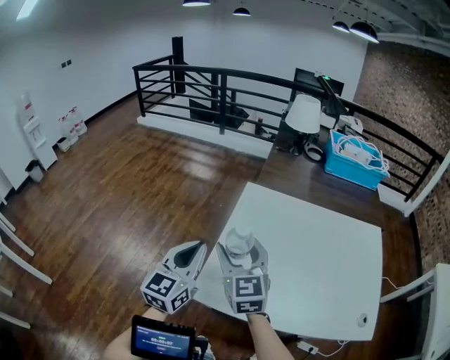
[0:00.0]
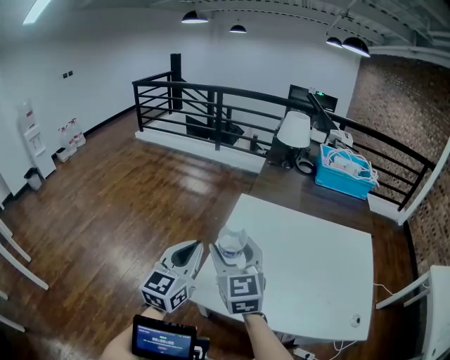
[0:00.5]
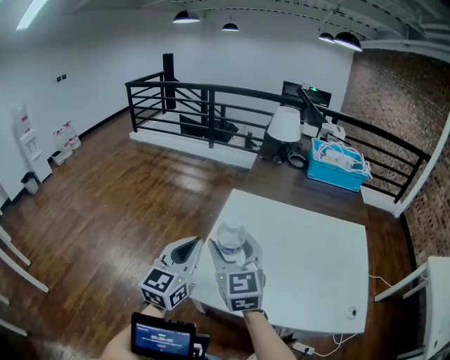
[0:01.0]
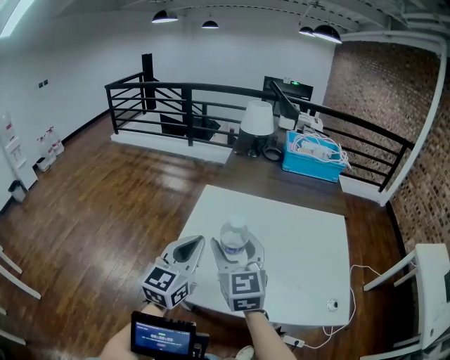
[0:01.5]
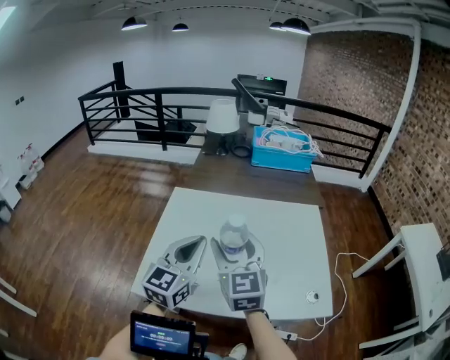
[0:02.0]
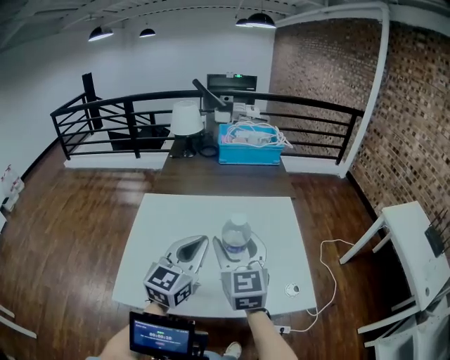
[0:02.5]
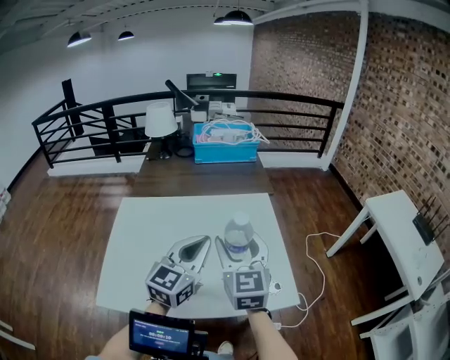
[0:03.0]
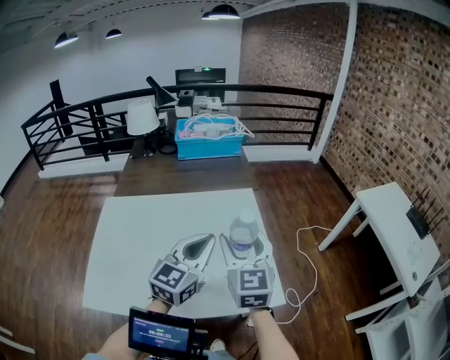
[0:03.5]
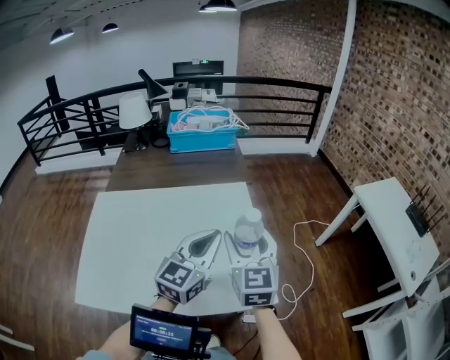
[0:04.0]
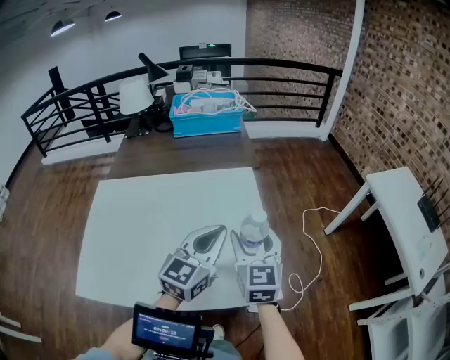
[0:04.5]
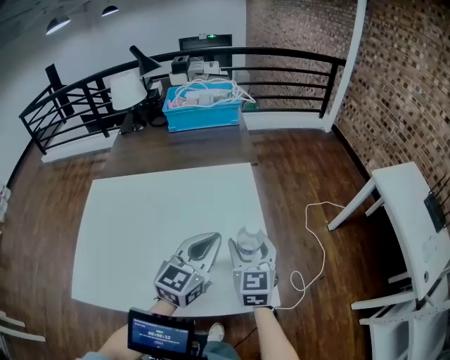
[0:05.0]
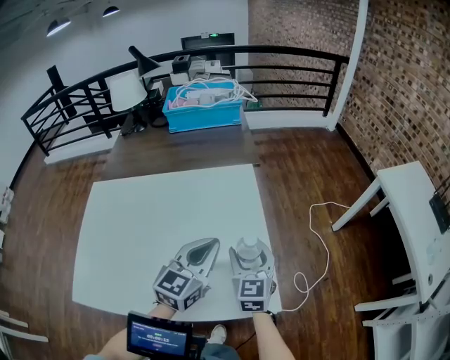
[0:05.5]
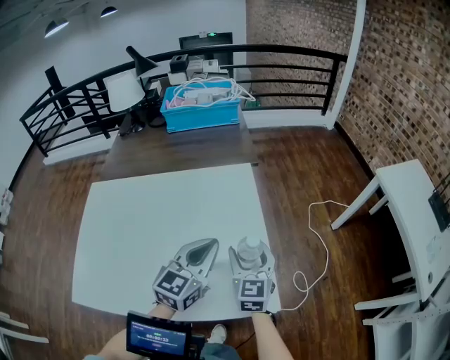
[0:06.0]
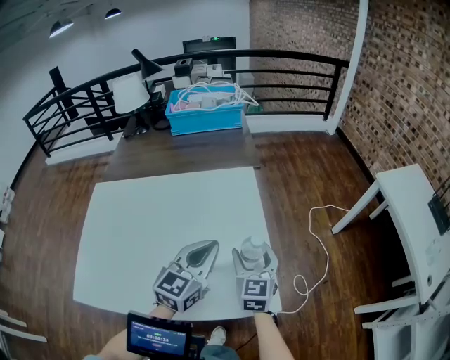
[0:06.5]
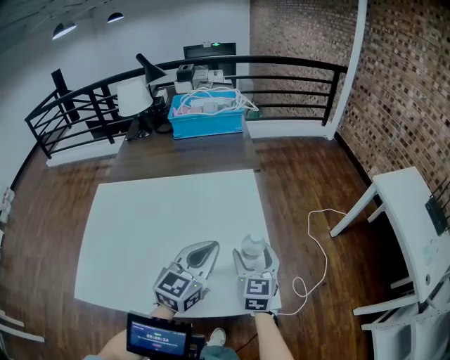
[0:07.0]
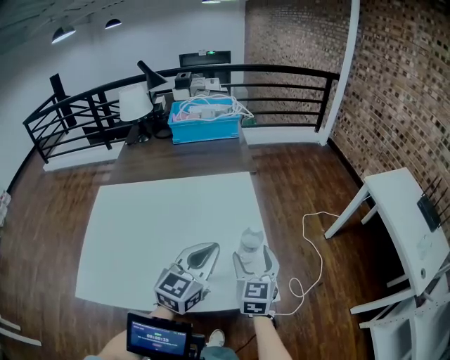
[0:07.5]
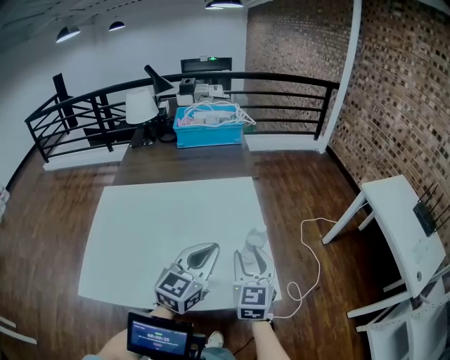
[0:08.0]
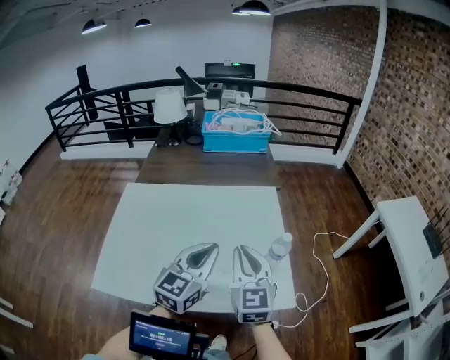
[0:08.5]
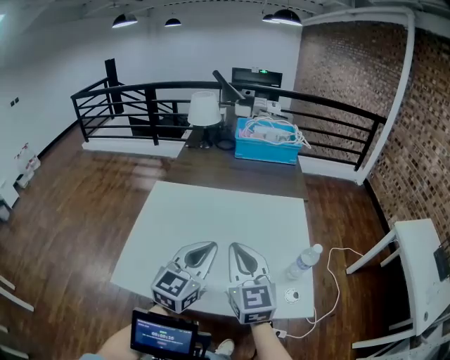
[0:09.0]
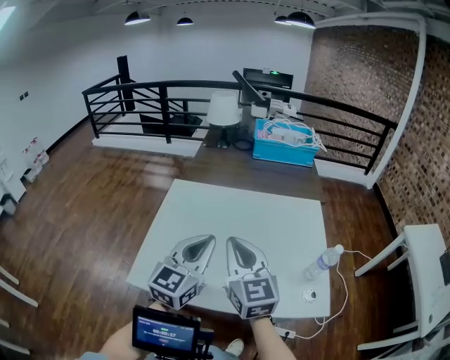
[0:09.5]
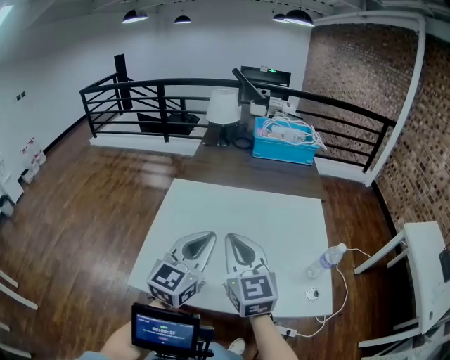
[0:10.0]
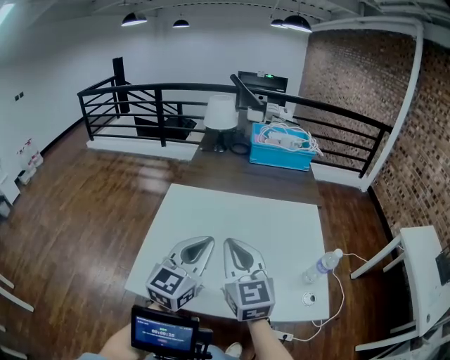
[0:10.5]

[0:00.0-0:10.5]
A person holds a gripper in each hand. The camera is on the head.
0:00.0 to 0:02.0: The two grippers go approximately 25 cm to the right.
0:02.0 to 0:04.0: Both grippers travel together to the right, about 30 cm. The left gripper turns by approximately 20 degrees. Meanwhile the right gripper turns by roughly 20 degrees.
0:04.0 to 0:06.5: The left gripper heads downward, covering about 10 cm. Meanwhile the right gripper travels downward by approximately 20 cm.
0:06.5 to 0:08.5: The left gripper goes roughly 15 cm backward, to the left and upward; the right gripper shifts some 20 cm upward, to the left and backward, and closes its fingers.
0:08.5 to 0:10.5: Both grippers travel together to the left, some 20 cm.

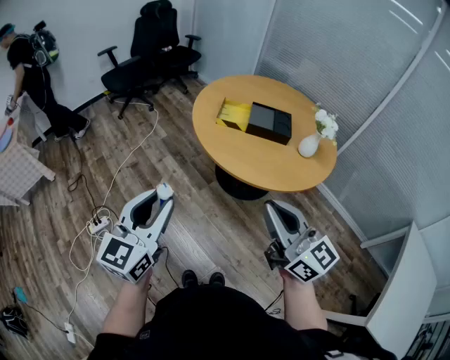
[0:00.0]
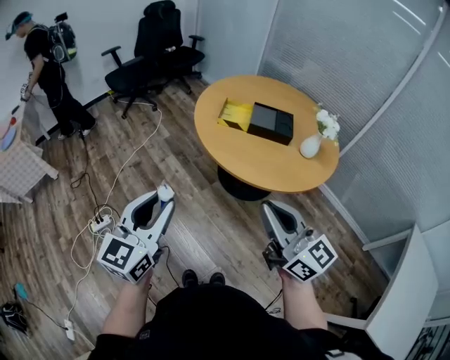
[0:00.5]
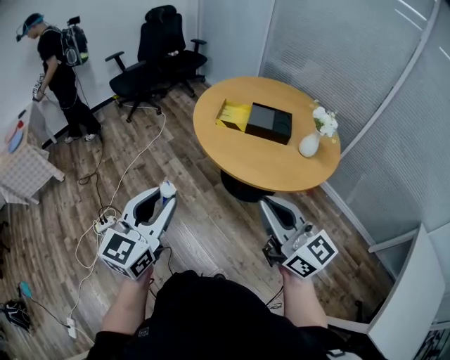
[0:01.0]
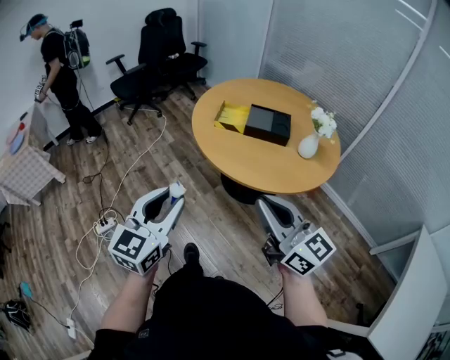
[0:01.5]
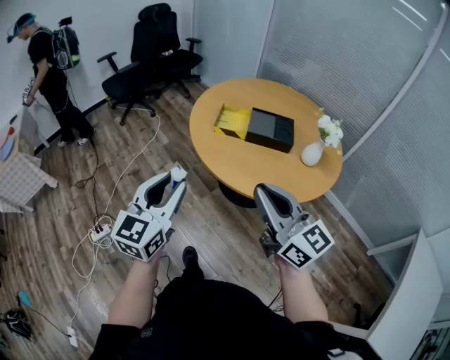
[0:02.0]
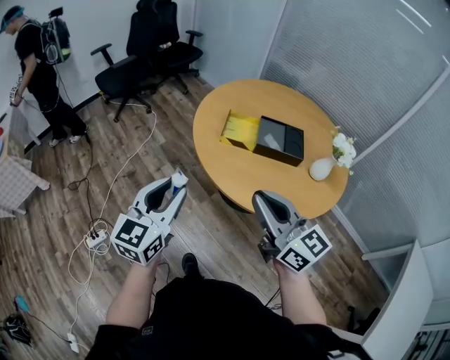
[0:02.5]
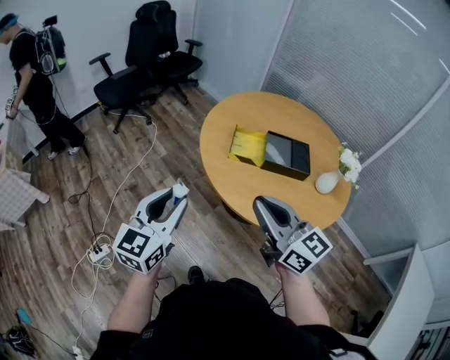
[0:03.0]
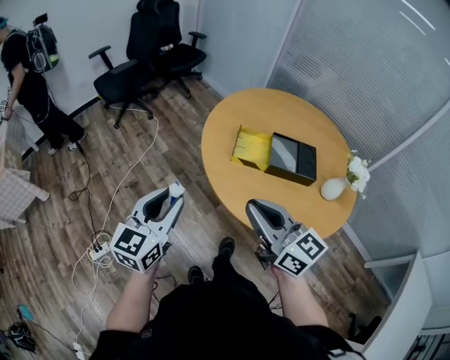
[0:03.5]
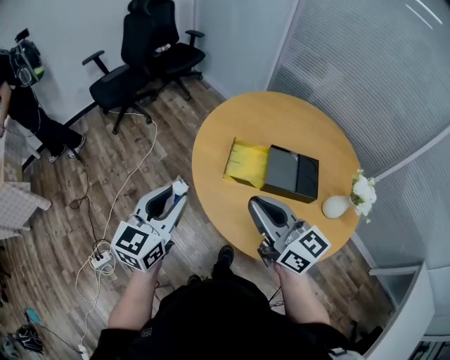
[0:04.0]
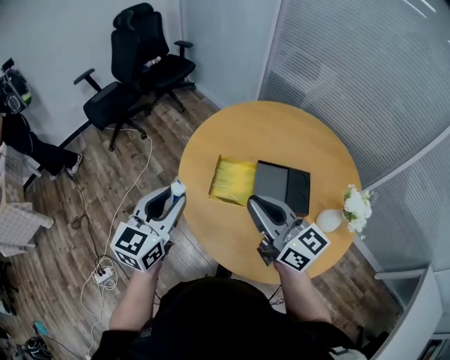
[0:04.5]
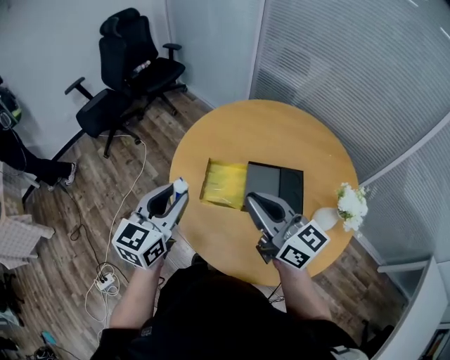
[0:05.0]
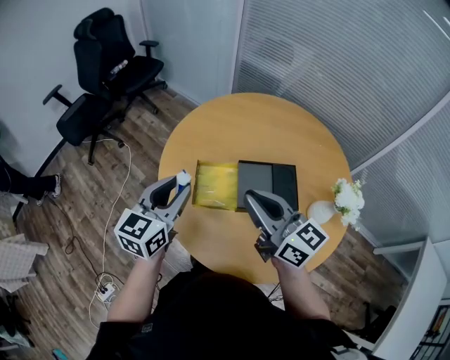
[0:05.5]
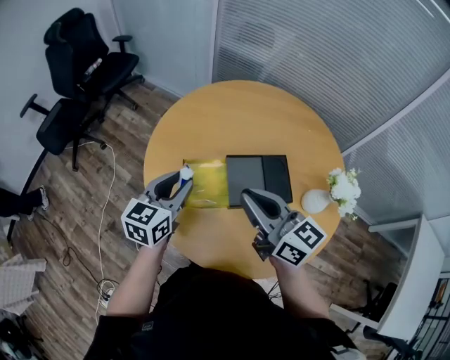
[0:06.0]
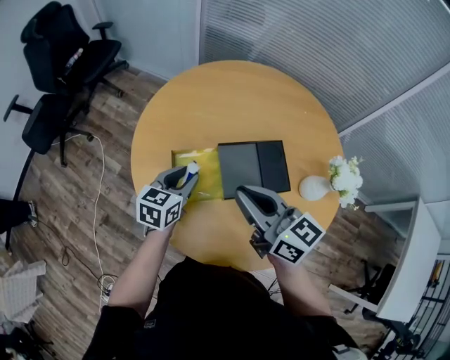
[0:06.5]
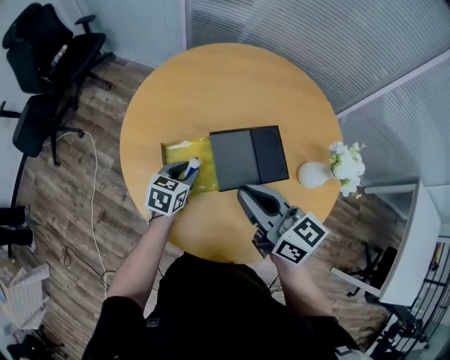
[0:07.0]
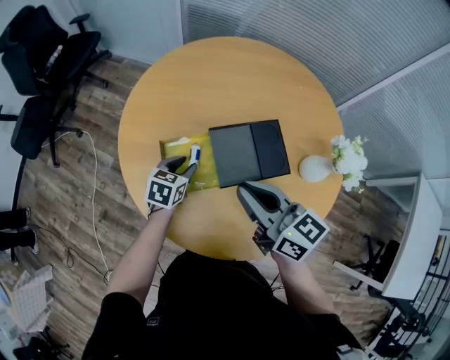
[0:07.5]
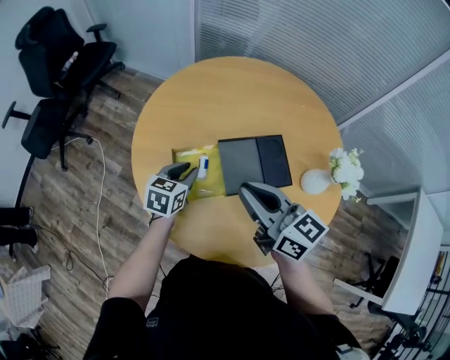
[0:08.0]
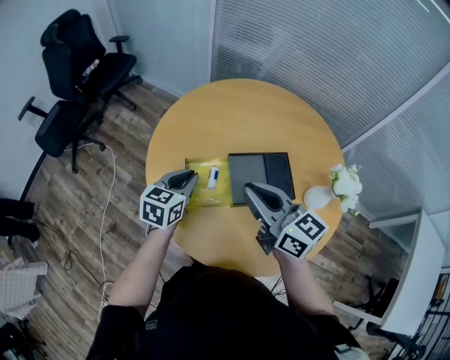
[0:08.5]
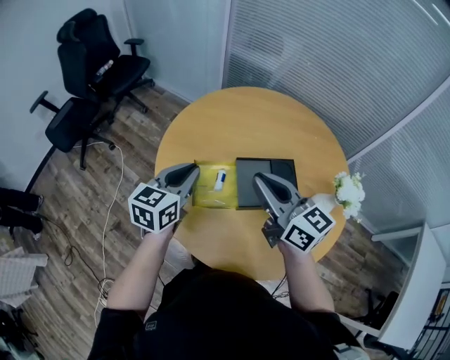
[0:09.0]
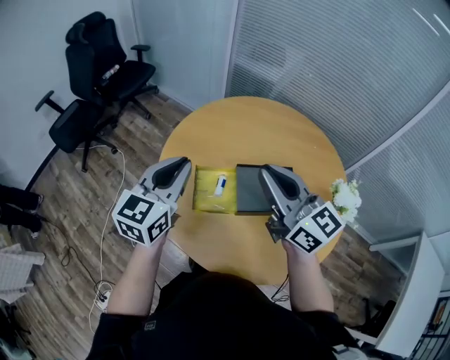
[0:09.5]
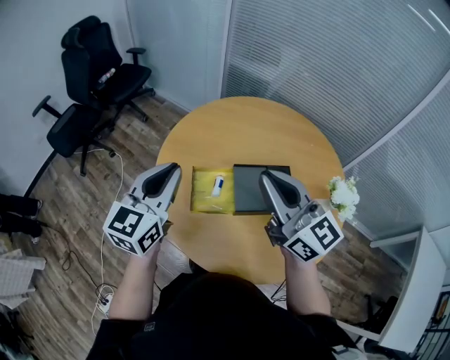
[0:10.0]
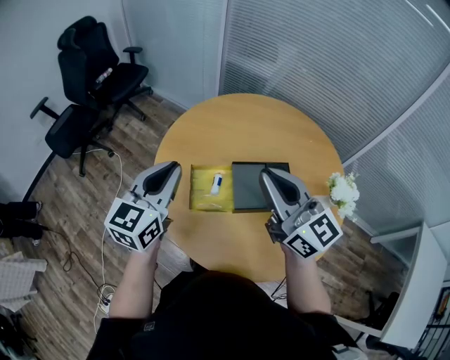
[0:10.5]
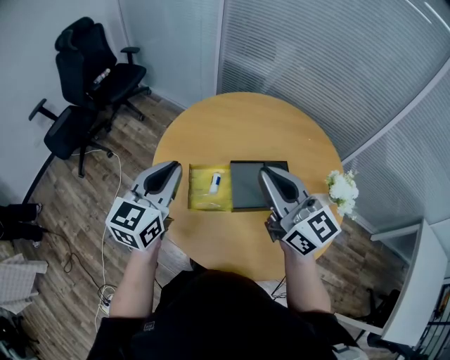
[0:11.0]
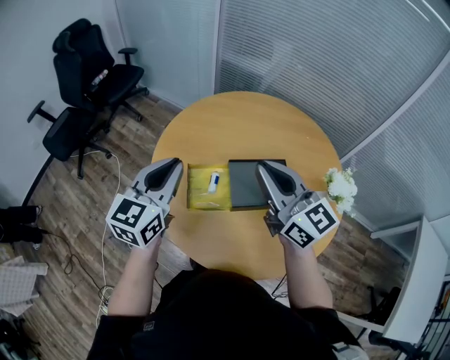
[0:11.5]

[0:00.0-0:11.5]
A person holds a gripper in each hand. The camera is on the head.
0:00.0 to 0:02.0: The right gripper heads forward, covering approximately 10 cm; the left gripper heads forward and to the right, covering about 15 cm.
0:02.0 to 0:04.0: The grippers both shift forward by roughly 30 cm.
0:04.0 to 0:06.0: The grippers both shift forward and to the right by approximately 25 cm. The left gripper changes its angle by roughly 20 degrees.
0:06.0 to 0:07.5: The right gripper is displaced downward by about 5 cm; the left gripper shifts approximately 20 cm downward, and changes its angle by about 30 degrees.
0:07.5 to 0:09.5: The left gripper travels upward by approximately 30 cm, angles its fingers upward, by roughly 40 degrees, and closes. The right gripper heads upward, covering some 15 cm, and changes its angle by approximately 20 degrees.
0:09.5 to 0:11.5: The grippers move only a little.

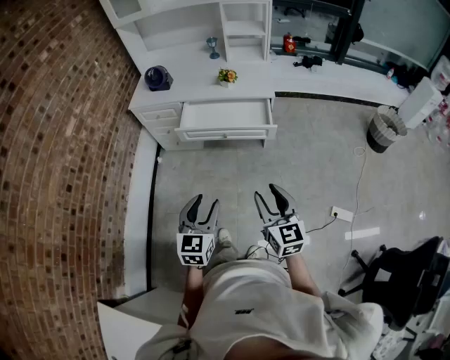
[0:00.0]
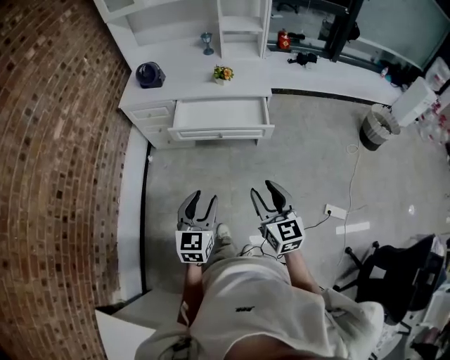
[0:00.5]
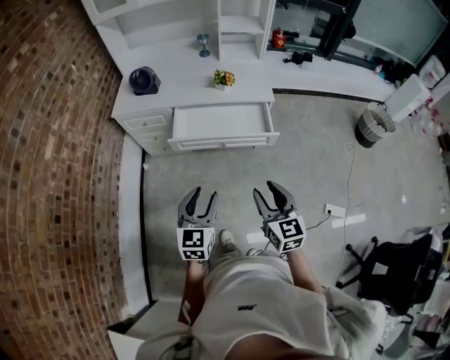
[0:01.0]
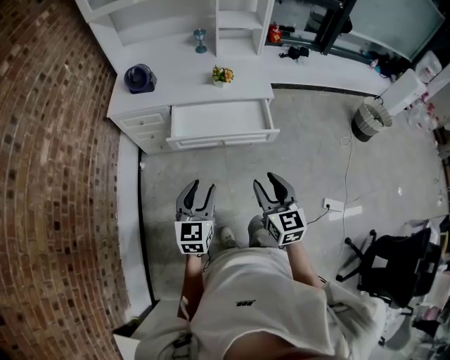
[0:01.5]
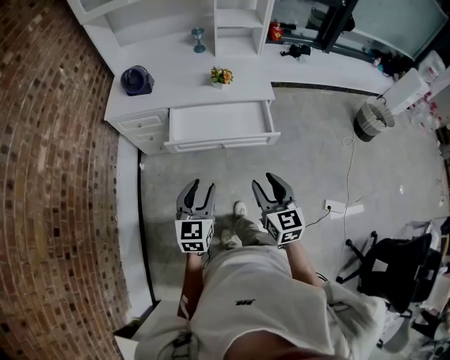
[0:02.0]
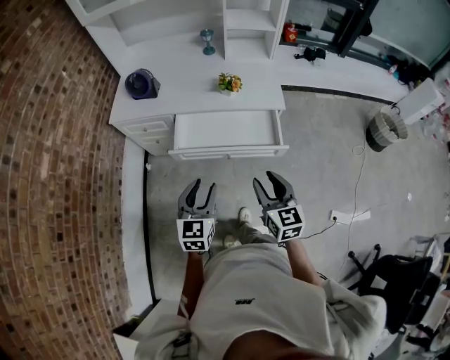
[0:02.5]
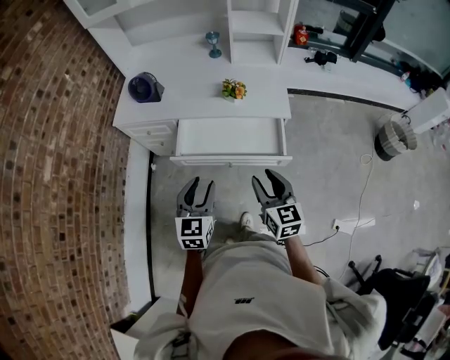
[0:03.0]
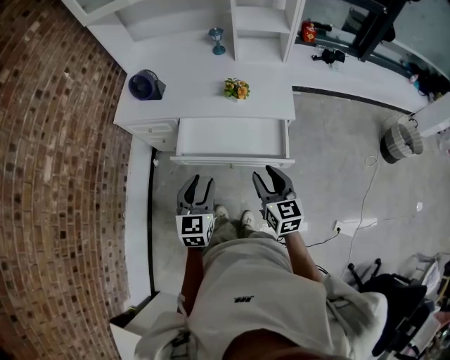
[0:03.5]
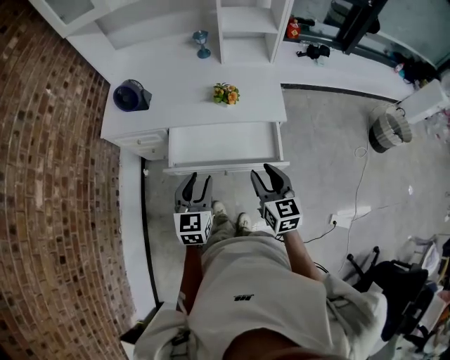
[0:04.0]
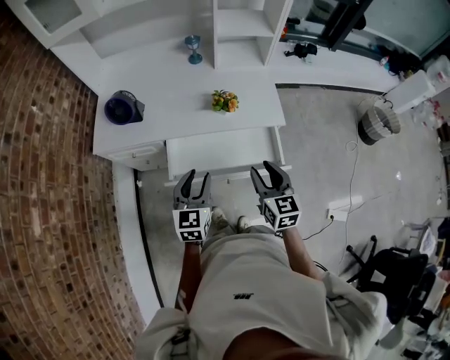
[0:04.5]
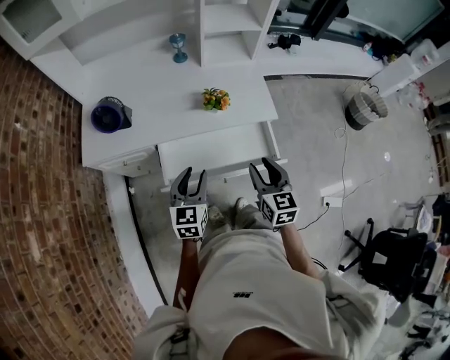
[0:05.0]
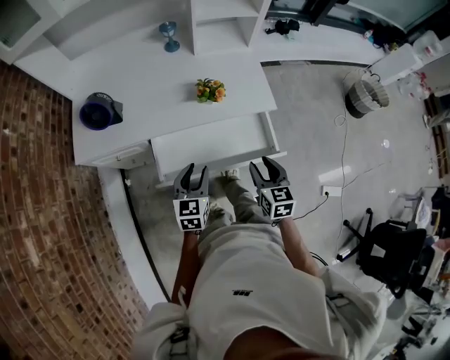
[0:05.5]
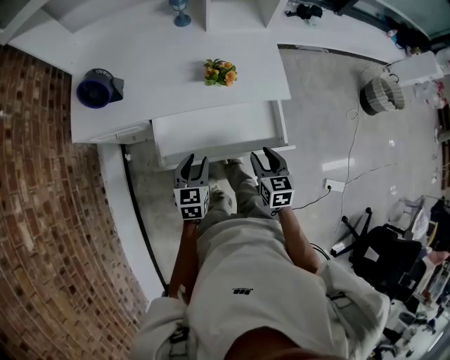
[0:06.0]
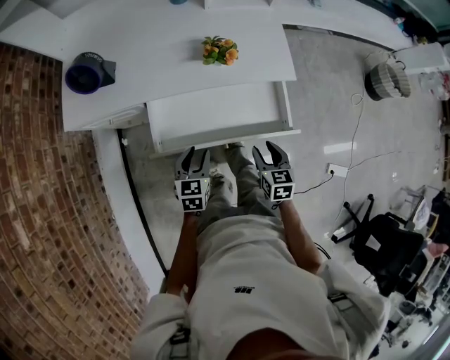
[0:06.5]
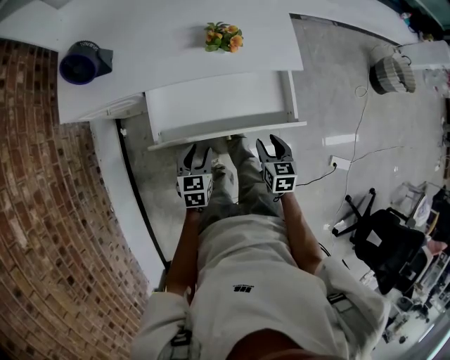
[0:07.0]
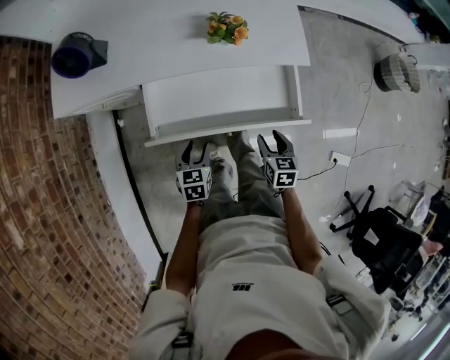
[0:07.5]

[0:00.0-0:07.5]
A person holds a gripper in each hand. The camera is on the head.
0:00.0 to 0:02.0: Both grippers travel together forward, approximately 20 cm.
0:02.0 to 0:04.0: The grippers both shift forward by approximately 20 cm.
0:04.0 to 0:05.5: The right gripper goes about 10 cm downward and forward. The left gripper is displaced forward and downward by some 15 cm.
0:05.5 to 0:07.5: Both grippers move downward, about 20 cm. The left gripper swivels some 20 degrees.
